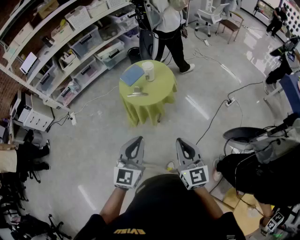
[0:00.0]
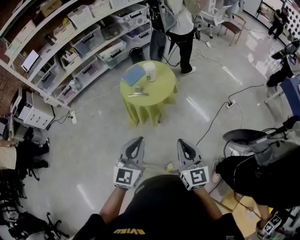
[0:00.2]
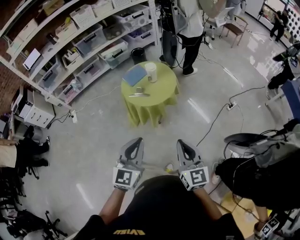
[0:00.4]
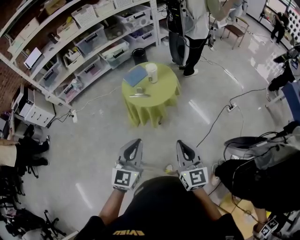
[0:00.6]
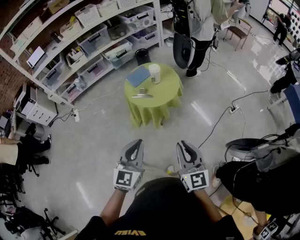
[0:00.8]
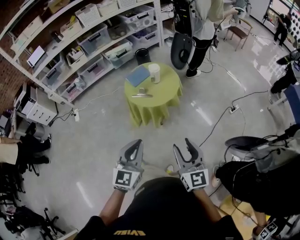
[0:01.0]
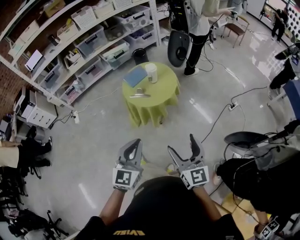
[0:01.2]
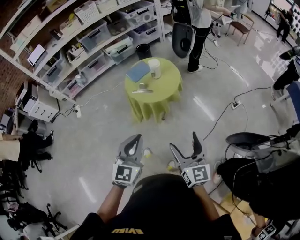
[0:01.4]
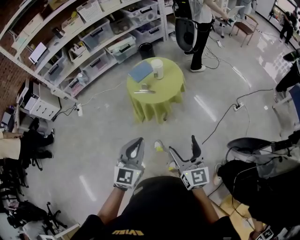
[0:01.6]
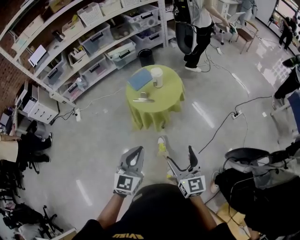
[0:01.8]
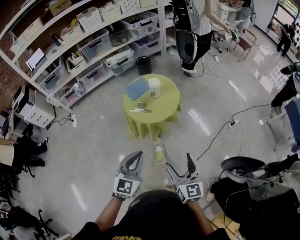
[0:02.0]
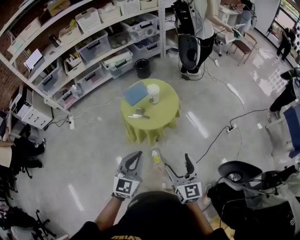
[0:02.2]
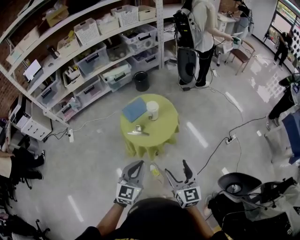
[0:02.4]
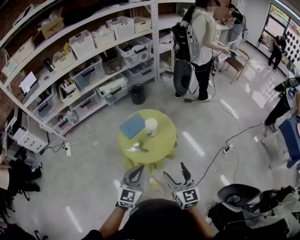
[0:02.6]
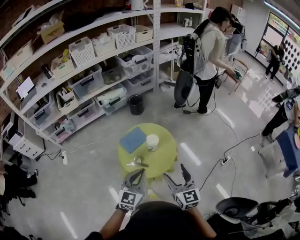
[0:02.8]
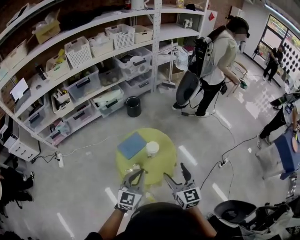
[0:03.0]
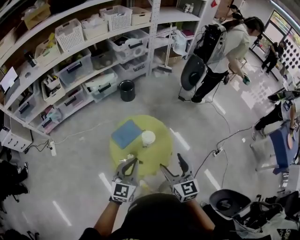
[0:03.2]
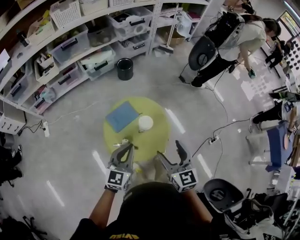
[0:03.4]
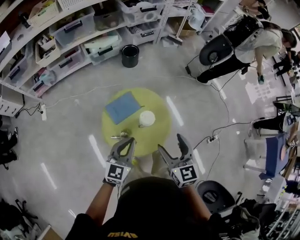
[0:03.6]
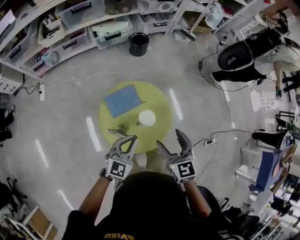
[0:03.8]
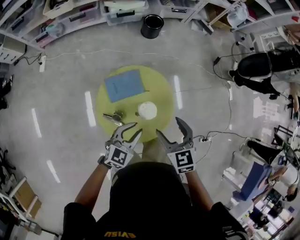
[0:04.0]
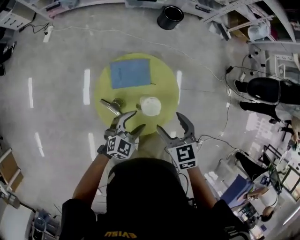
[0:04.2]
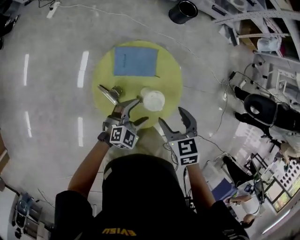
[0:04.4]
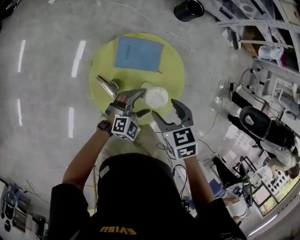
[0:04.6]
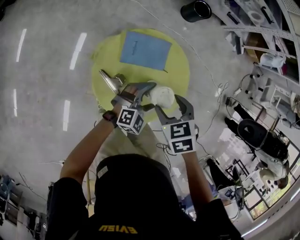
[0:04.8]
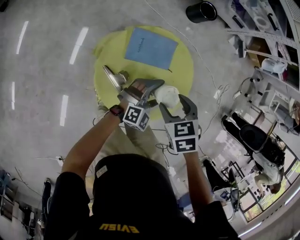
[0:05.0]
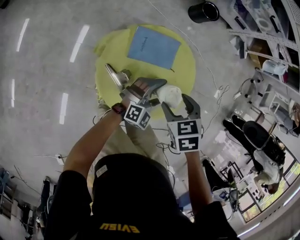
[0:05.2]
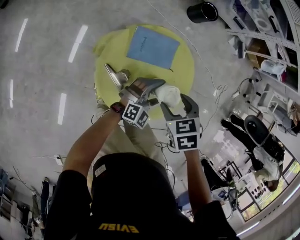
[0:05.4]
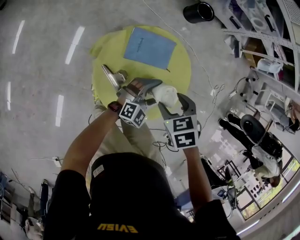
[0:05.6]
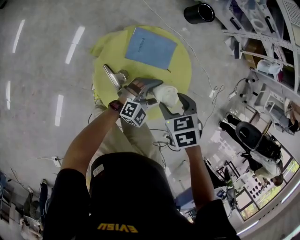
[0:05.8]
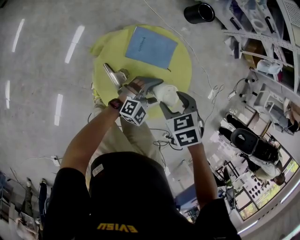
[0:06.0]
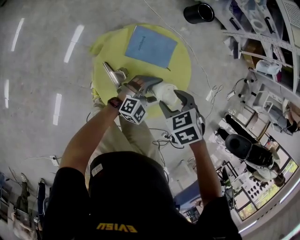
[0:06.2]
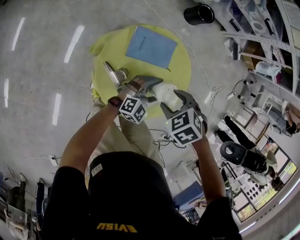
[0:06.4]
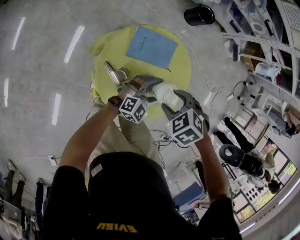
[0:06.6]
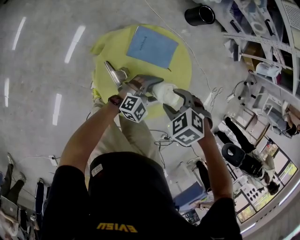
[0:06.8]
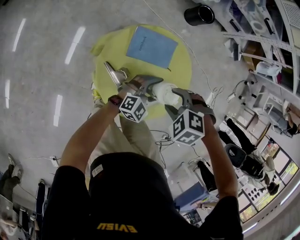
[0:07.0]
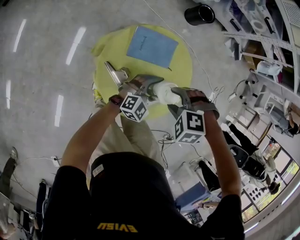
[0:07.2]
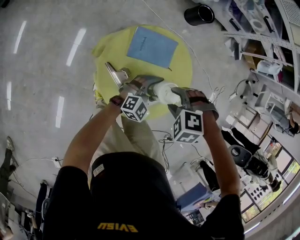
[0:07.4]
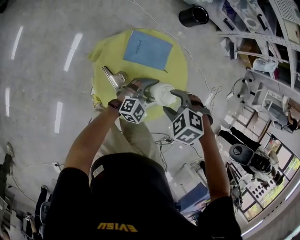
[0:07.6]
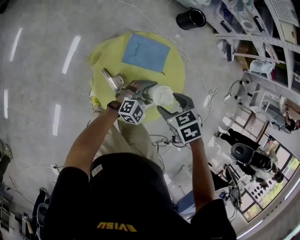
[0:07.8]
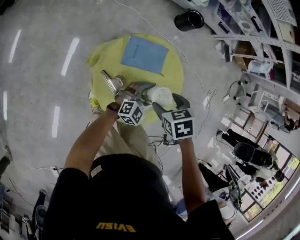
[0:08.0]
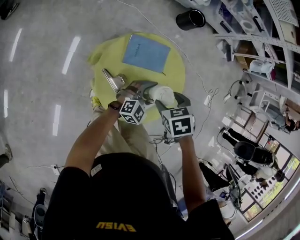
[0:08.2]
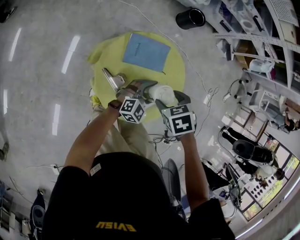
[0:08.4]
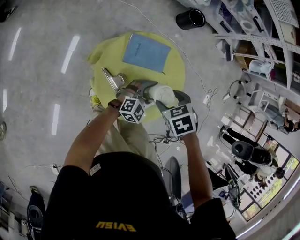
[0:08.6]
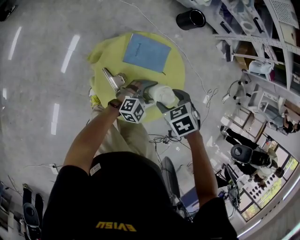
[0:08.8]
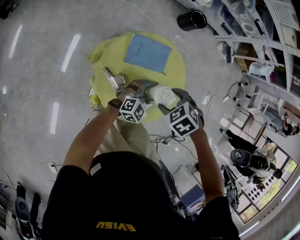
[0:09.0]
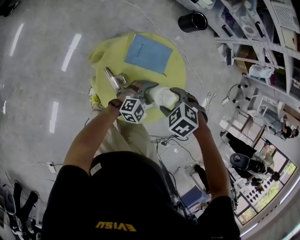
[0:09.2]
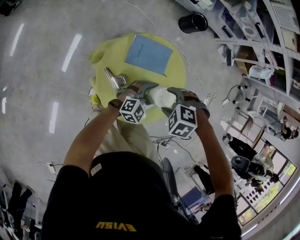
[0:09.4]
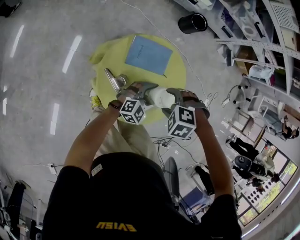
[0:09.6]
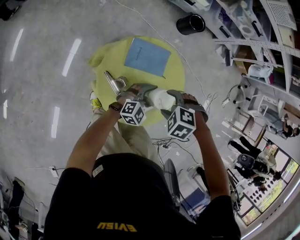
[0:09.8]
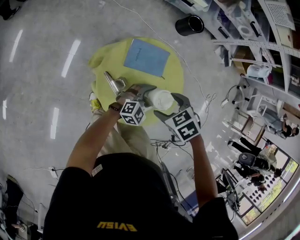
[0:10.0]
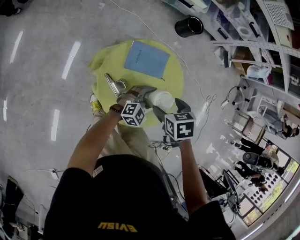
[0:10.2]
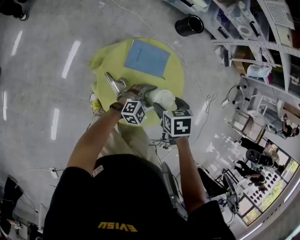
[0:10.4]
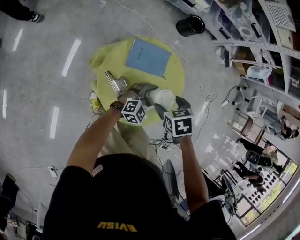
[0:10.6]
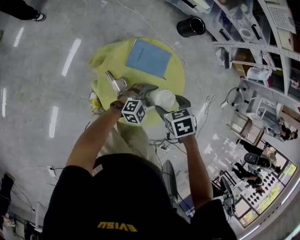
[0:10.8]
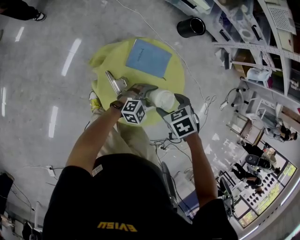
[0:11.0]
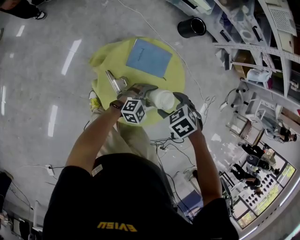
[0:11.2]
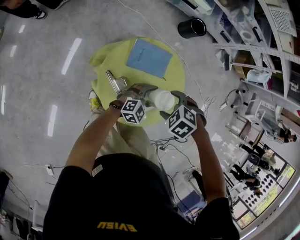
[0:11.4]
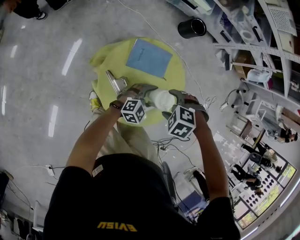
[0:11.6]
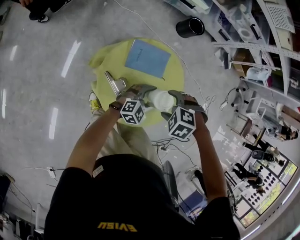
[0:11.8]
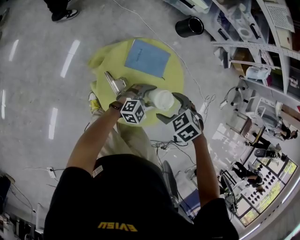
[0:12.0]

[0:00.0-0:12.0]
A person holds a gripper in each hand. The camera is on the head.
0:00.0 to 0:01.6: The right gripper opens up.
0:01.6 to 0:03.0: The pair of grippers is taken forward, about 40 cm.
0:03.0 to 0:04.4: The grippers both shift downward by approximately 30 cm. The left gripper turns by approximately 30 degrees, and opens; the right gripper tilts its fingers roughly 40 degrees downward.
0:04.4 to 0:06.0: The right gripper shifts approximately 5 cm downward, and changes its angle by roughly 30 degrees. The left gripper shifts by approximately 5 cm.
0:06.0 to 0:07.6: The right gripper swivels roughly 40 degrees.
0:09.0 to 0:10.4: The right gripper changes its angle by approximately 40 degrees.
0:10.4 to 0:12.0: The right gripper twists roughly 40 degrees counterclockwise, seen from behind.

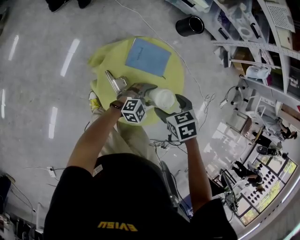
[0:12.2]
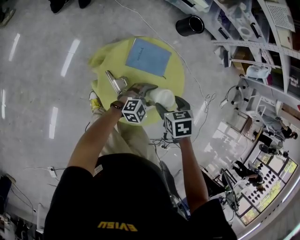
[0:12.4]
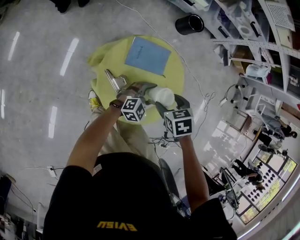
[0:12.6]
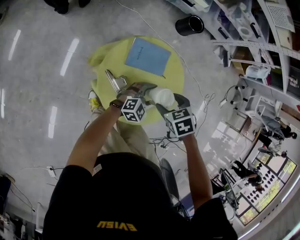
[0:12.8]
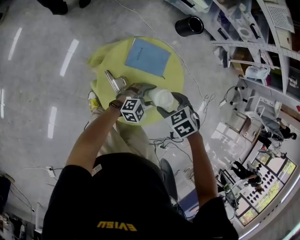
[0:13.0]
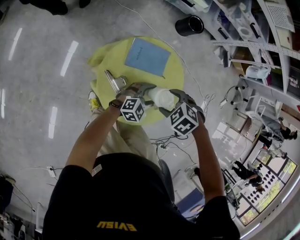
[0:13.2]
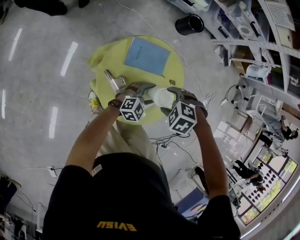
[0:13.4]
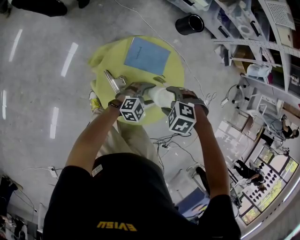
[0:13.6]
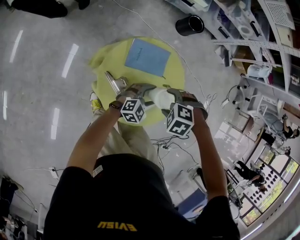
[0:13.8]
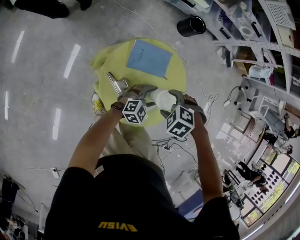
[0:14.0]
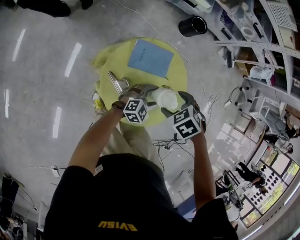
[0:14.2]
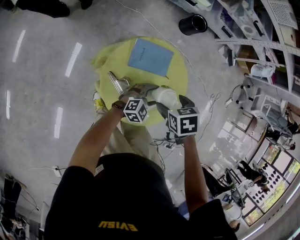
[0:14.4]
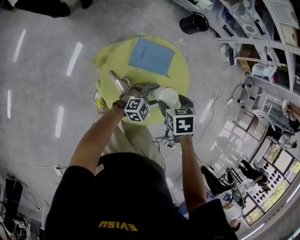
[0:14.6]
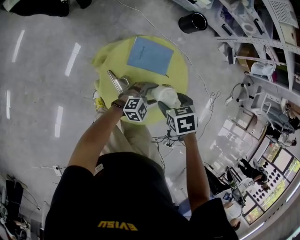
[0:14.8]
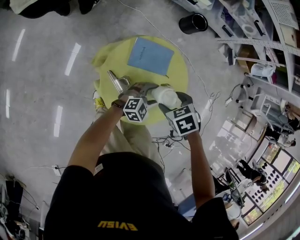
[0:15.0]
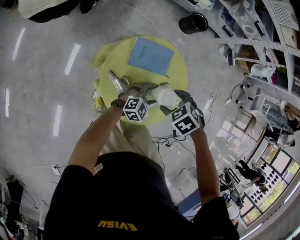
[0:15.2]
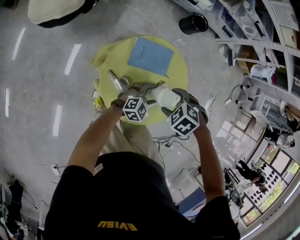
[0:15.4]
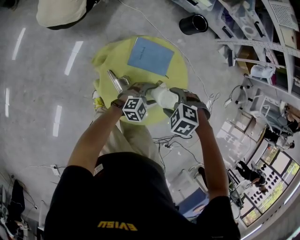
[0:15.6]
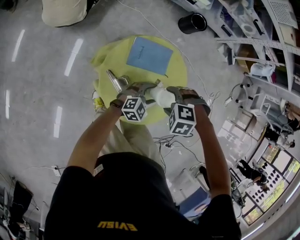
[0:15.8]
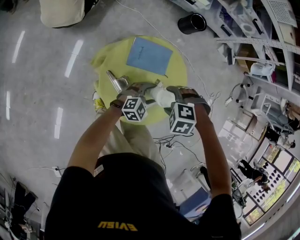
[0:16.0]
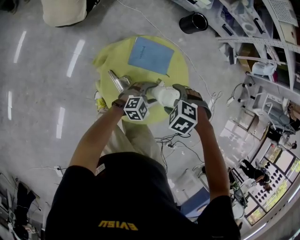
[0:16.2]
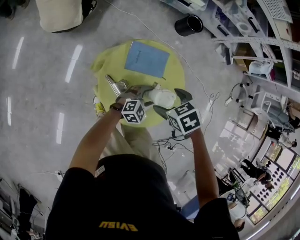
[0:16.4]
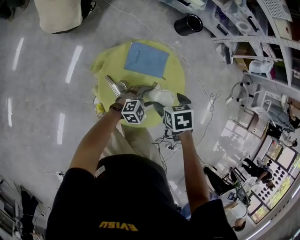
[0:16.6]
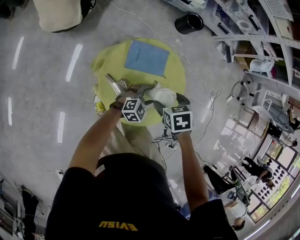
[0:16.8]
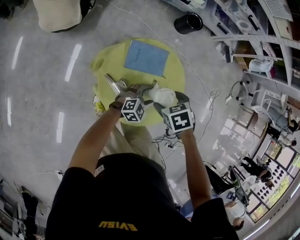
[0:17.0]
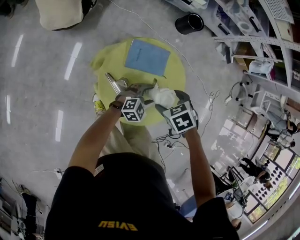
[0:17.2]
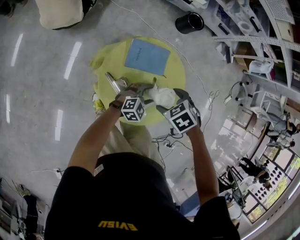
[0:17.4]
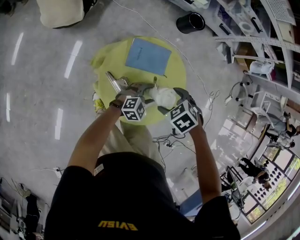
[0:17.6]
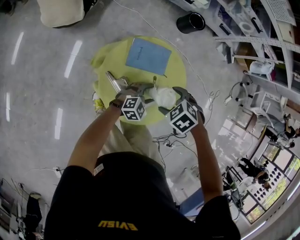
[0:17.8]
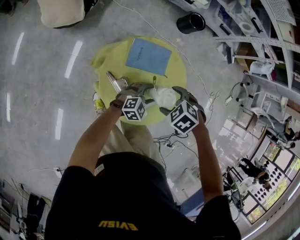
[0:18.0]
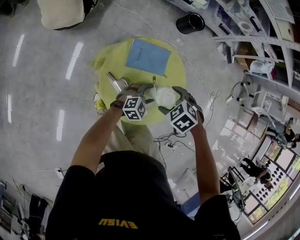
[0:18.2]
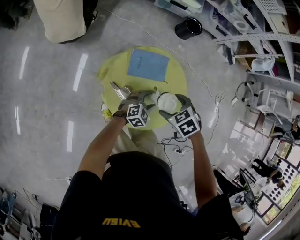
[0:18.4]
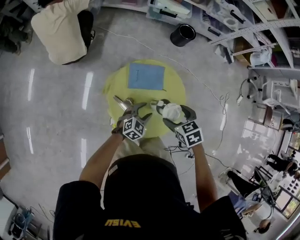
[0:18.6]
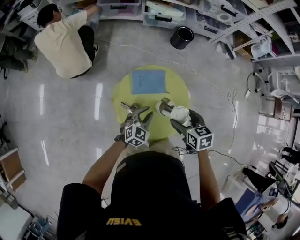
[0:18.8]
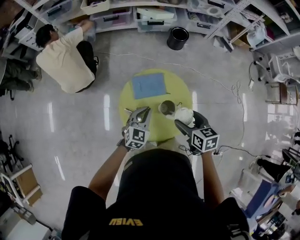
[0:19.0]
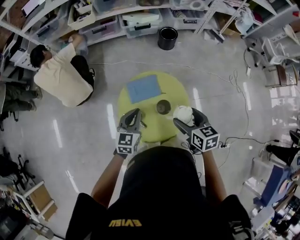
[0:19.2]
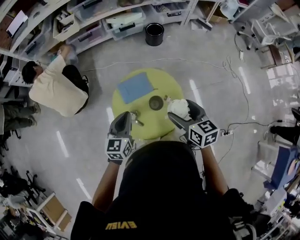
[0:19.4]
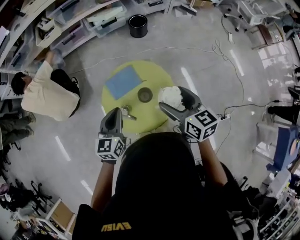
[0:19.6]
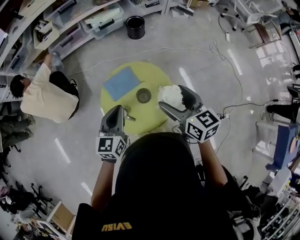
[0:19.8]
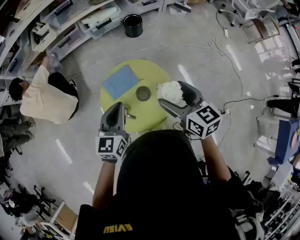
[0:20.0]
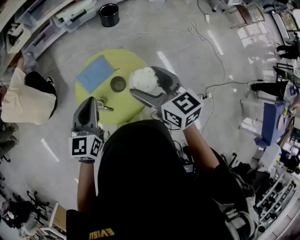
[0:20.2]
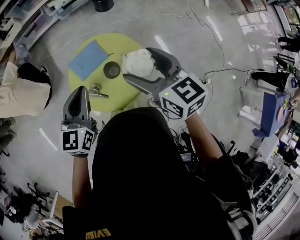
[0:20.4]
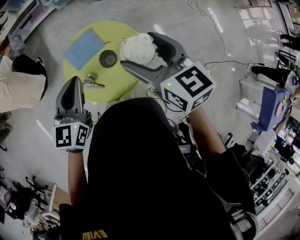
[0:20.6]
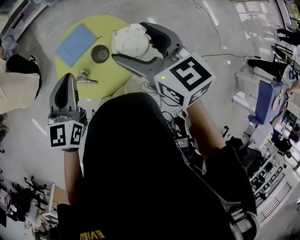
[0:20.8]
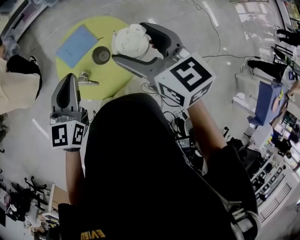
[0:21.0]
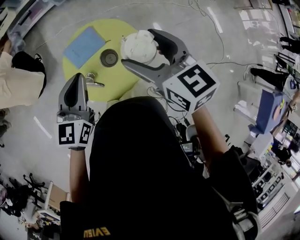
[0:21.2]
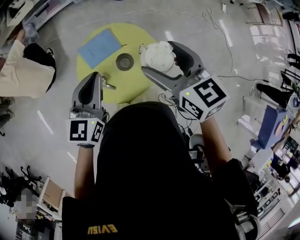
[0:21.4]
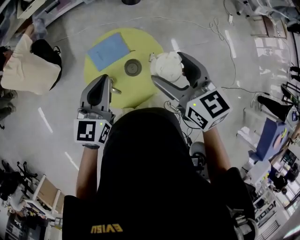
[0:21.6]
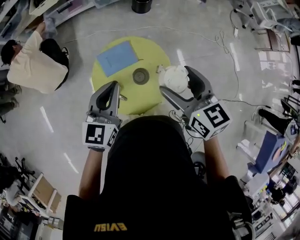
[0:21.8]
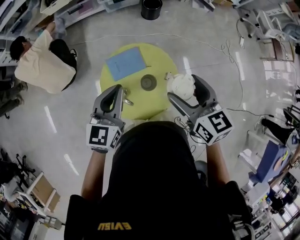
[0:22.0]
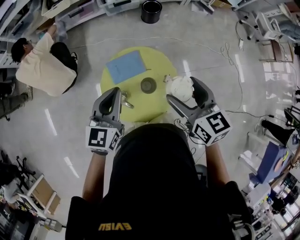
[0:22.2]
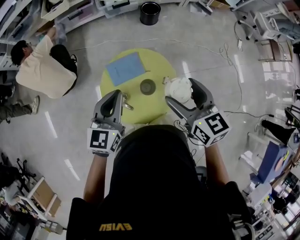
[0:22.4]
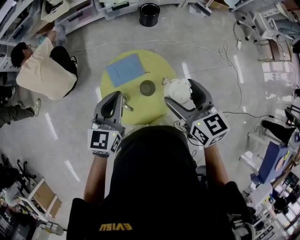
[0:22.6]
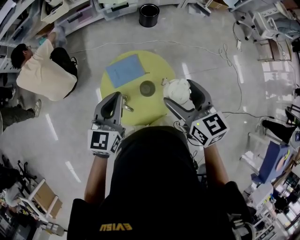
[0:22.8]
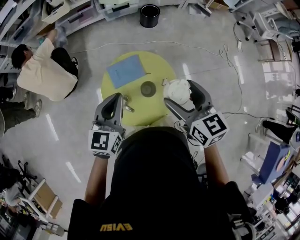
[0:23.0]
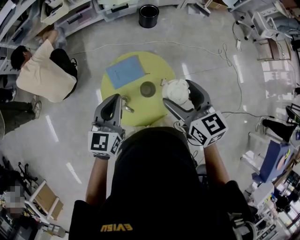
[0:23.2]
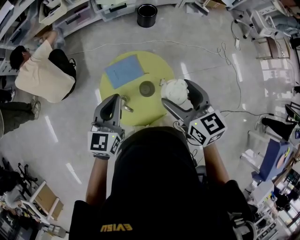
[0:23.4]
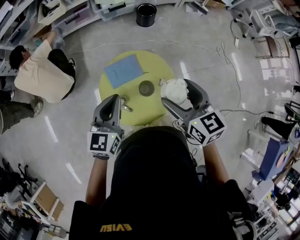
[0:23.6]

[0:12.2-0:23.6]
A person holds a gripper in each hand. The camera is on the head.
0:12.2 to 0:13.6: The right gripper rolls counterclockwise, seen from behind, by approximately 50 degrees.
0:13.6 to 0:15.0: The right gripper twists roughly 50 degrees clockwise, seen from behind.
0:16.4 to 0:17.8: The right gripper changes its angle by about 20 degrees.
0:17.8 to 0:19.4: The grippers both shift upward by about 25 cm. The left gripper rotates roughly 30 degrees, and closes up. Meanwhile the right gripper angles its fingers upward, by about 50 degrees.
0:19.4 to 0:20.8: The right gripper shifts roughly 5 cm upward; the left gripper is displaced to the right by approximately 5 cm.
0:20.8 to 0:23.6: There are only small adjustments of the grippers.

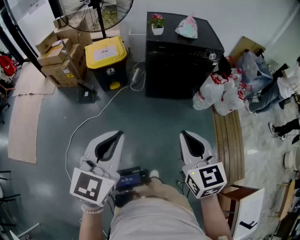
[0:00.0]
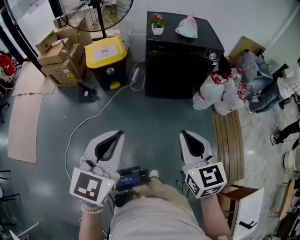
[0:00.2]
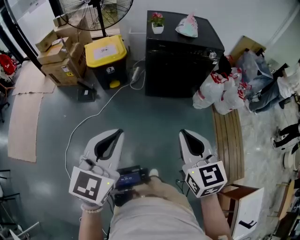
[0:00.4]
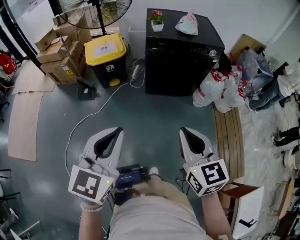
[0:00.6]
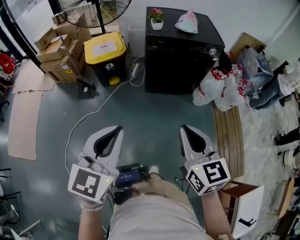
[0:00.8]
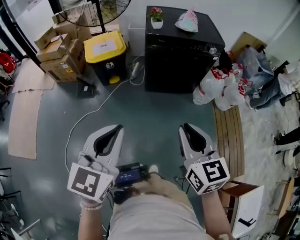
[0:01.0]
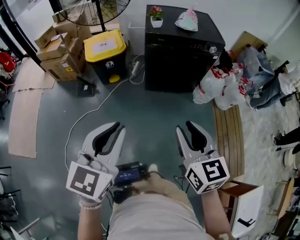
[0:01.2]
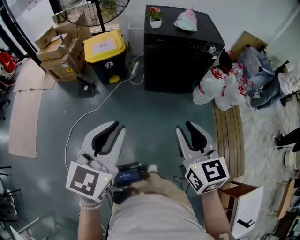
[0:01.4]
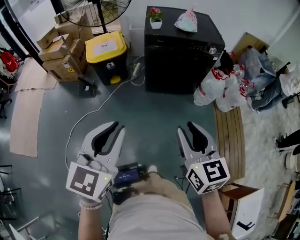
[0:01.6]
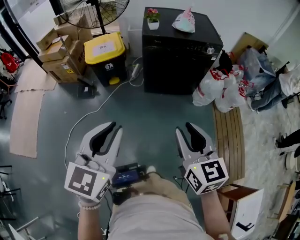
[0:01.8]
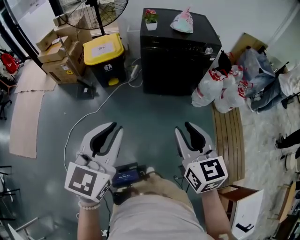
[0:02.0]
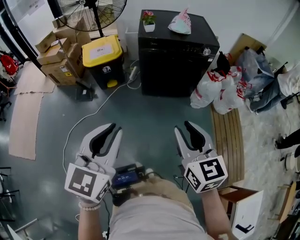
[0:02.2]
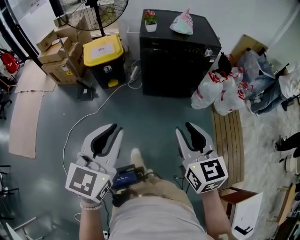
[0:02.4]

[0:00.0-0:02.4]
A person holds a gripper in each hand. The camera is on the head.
0:00.0 to 0:01.2: The right gripper opens up.
0:01.2 to 0:02.4: The right gripper goes some 5 cm to the right.
